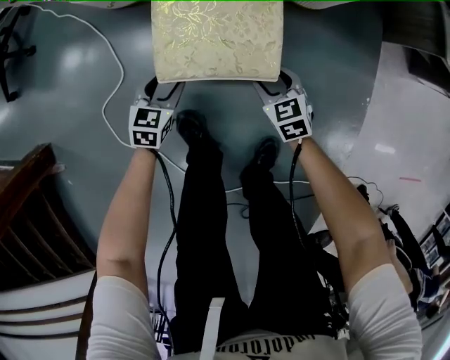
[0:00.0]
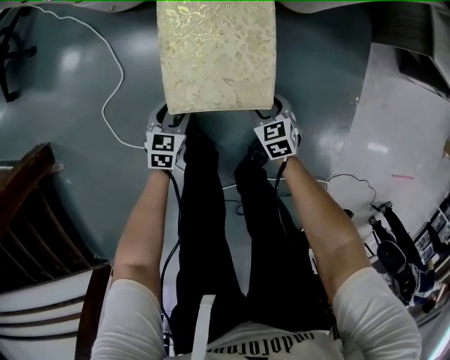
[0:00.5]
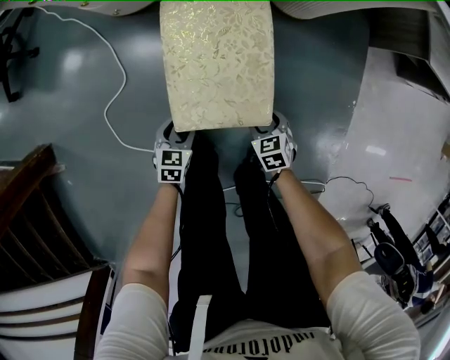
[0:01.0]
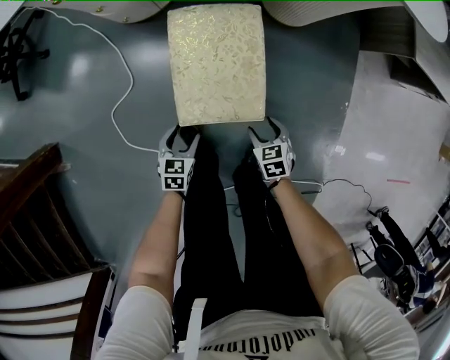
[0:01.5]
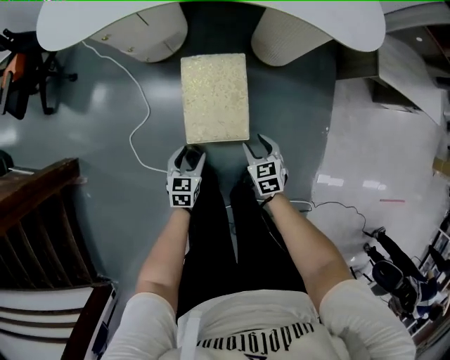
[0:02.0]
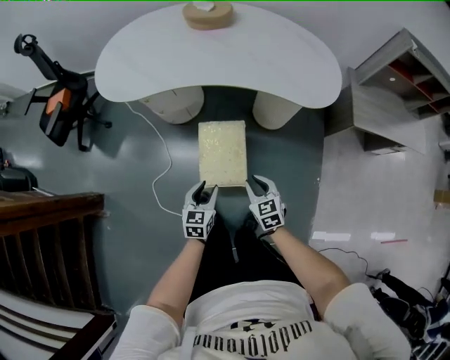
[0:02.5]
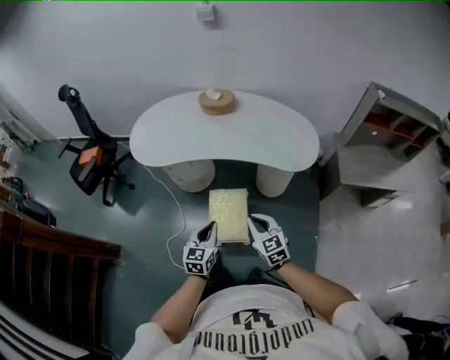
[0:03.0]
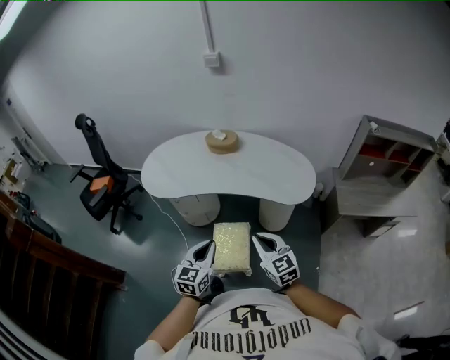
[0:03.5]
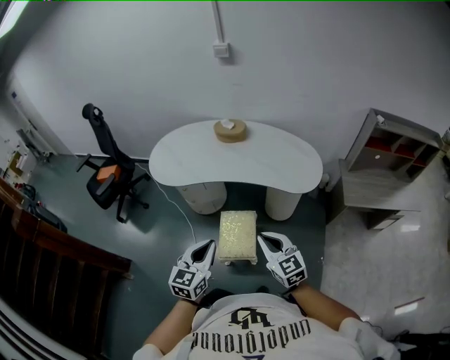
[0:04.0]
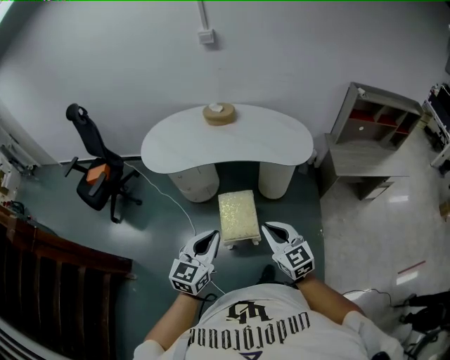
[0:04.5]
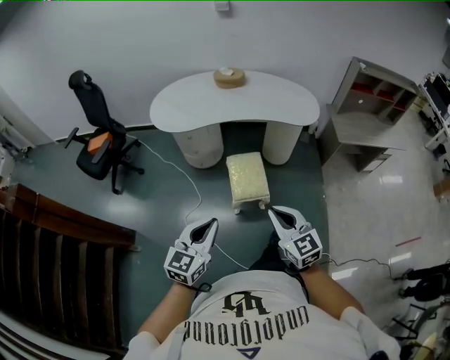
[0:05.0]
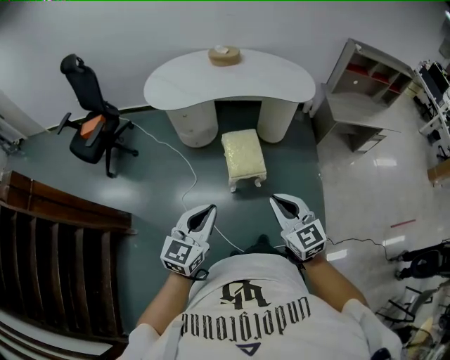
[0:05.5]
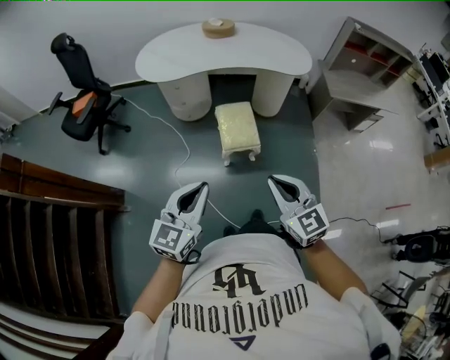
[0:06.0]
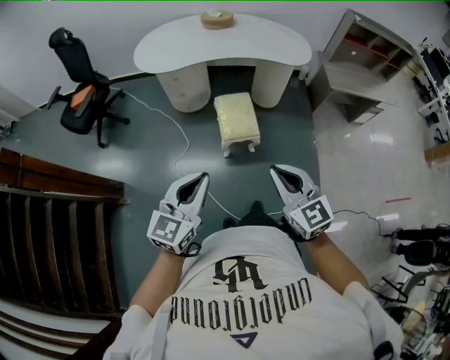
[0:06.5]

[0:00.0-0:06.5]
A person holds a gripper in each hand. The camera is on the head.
0:00.0 to 0:02.0: The left gripper travels upward and backward by some 30 cm. The right gripper is displaced upward by approximately 25 cm.
0:02.0 to 0:04.5: Both grippers move upward, some 60 cm. The right gripper angles its fingers upward, by roughly 40 degrees, and closes. The left gripper tilts its fingers about 30 degrees upward, and closes its fingers.
0:04.5 to 0:06.5: The right gripper shifts approximately 25 cm backward; the left gripper heads backward and to the left, covering roughly 30 cm.

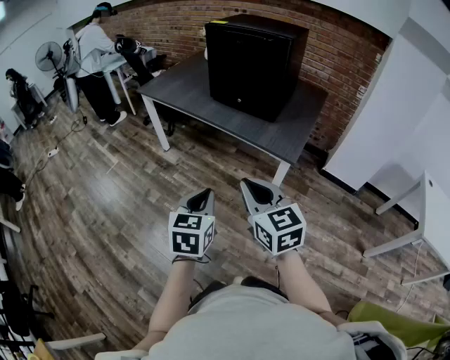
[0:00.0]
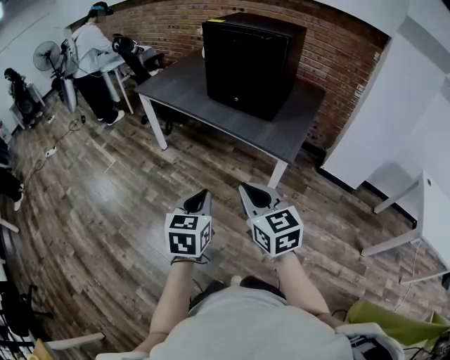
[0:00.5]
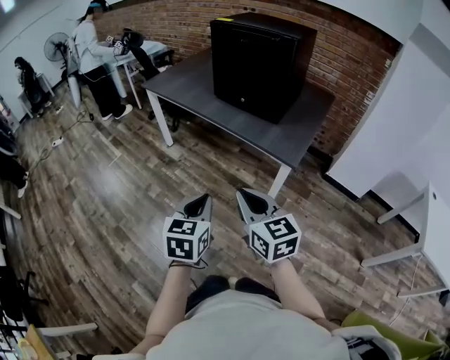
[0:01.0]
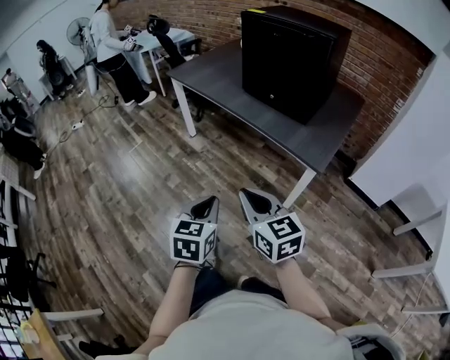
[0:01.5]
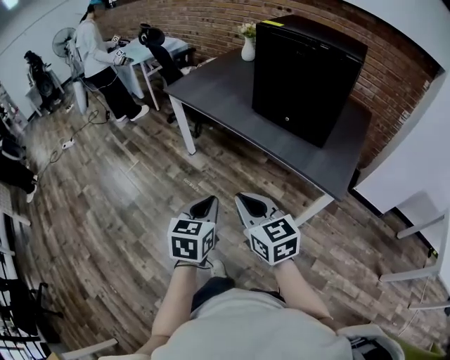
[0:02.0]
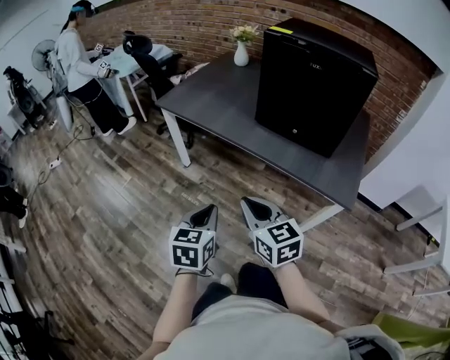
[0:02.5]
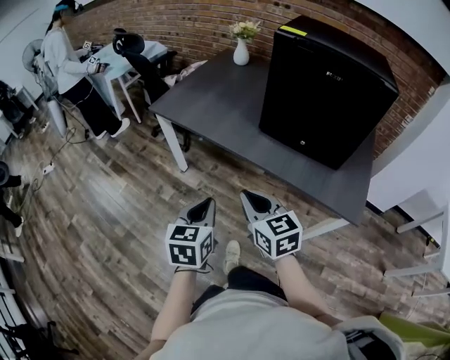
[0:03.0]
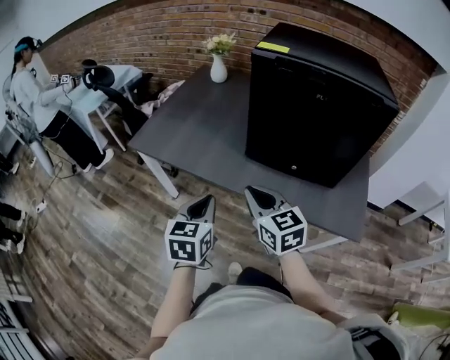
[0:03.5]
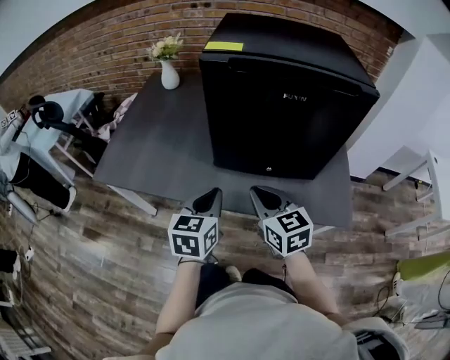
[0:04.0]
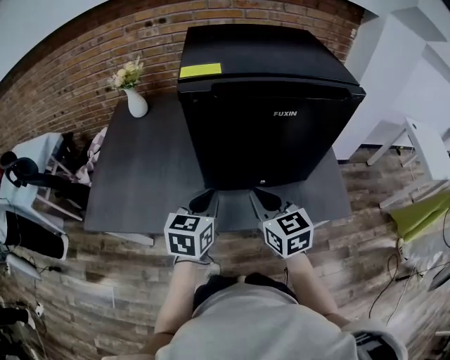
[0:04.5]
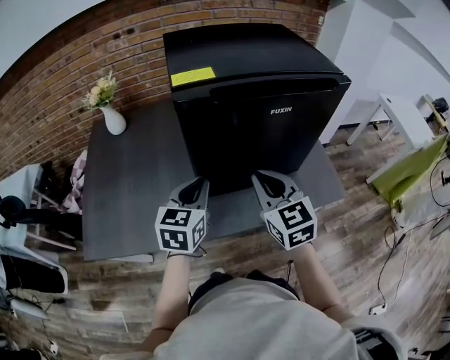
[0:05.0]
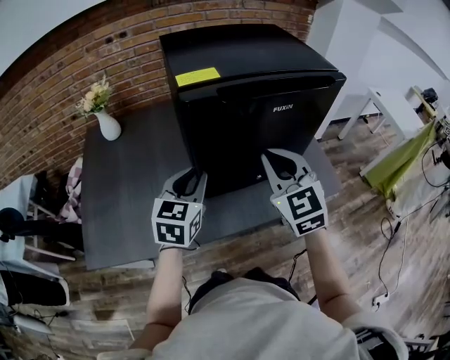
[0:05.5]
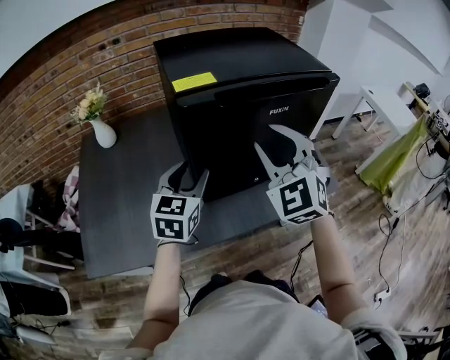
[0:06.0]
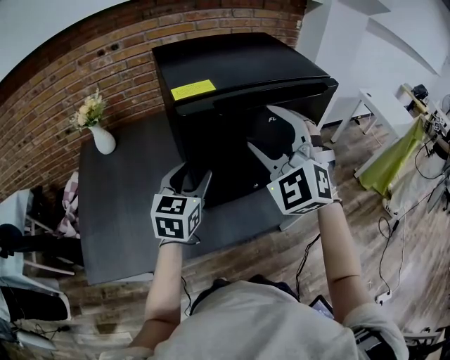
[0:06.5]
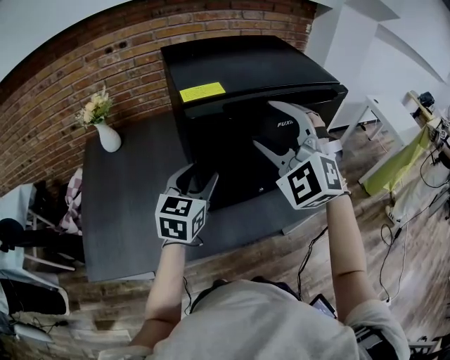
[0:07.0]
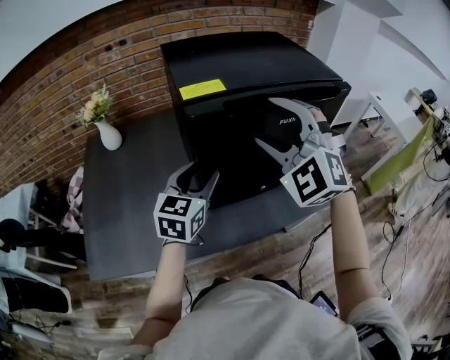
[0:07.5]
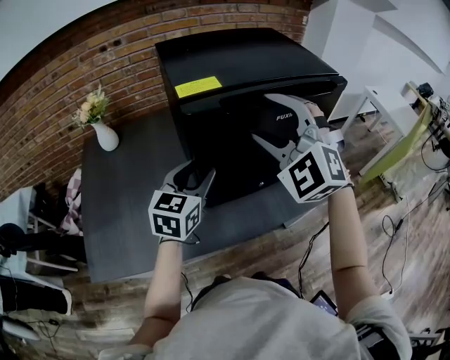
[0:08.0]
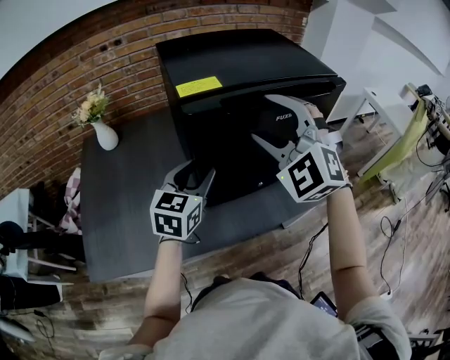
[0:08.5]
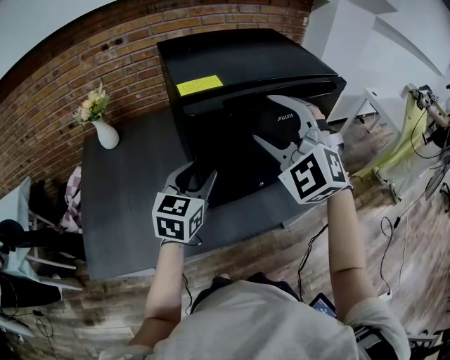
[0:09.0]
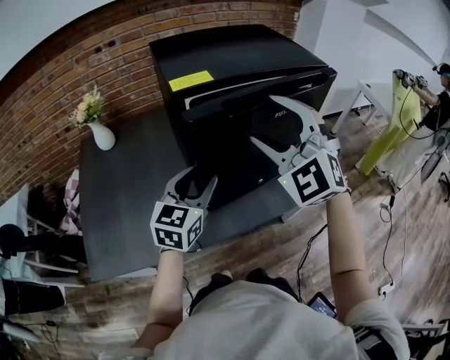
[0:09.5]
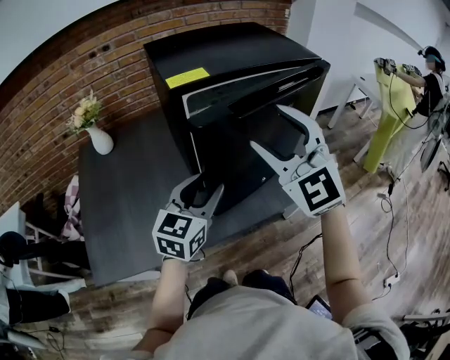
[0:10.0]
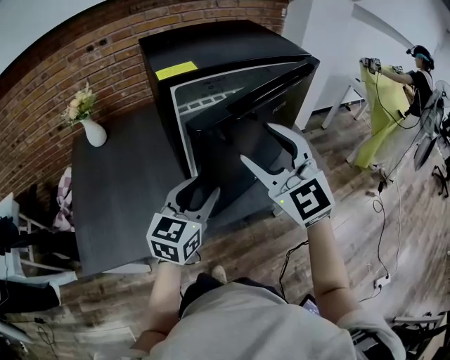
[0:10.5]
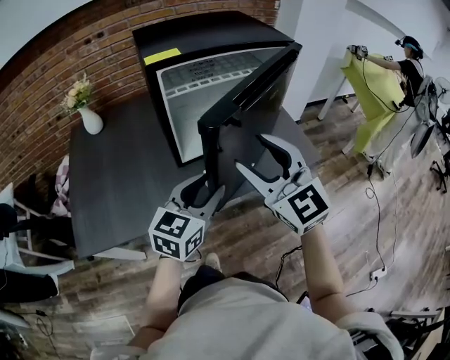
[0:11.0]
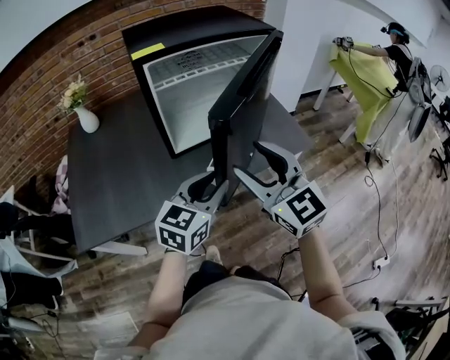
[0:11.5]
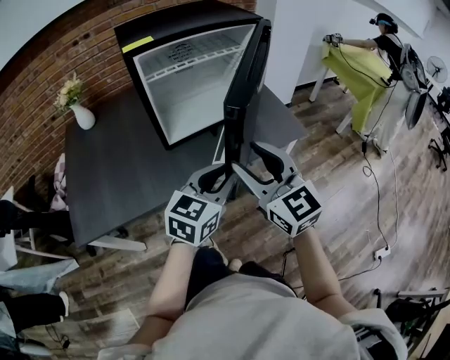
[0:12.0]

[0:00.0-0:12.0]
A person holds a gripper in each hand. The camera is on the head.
0:00.0 to 0:02.0: Both grippers travel together forward and to the left, roughly 25 cm.
0:02.0 to 0:04.0: The two grippers travel together, approximately 40 cm. The left gripper turns by approximately 30 degrees. The right gripper rotates approximately 30 degrees.
0:04.0 to 0:06.0: The left gripper ends up roughly 20 cm from where it was, changes its angle by approximately 30 degrees, and opens up. The right gripper is displaced upward by some 20 cm, swivels roughly 60 degrees, and opens.
0:06.0 to 0:08.0: The right gripper changes place by approximately 5 cm, rotates approximately 20 degrees, and opens up.
0:08.0 to 0:10.0: The two grippers go about 5 cm backward. The right gripper rotates roughly 30 degrees.
0:10.0 to 0:12.0: The left gripper moves to the right and backward, approximately 25 cm, and closes up. Meanwhile the right gripper goes some 25 cm backward, downward and to the right, and rotates approximately 30 degrees.

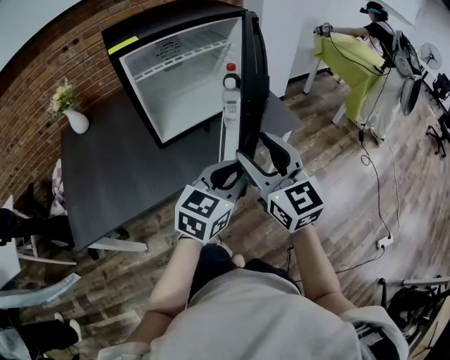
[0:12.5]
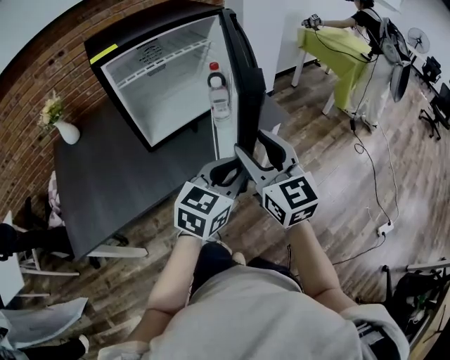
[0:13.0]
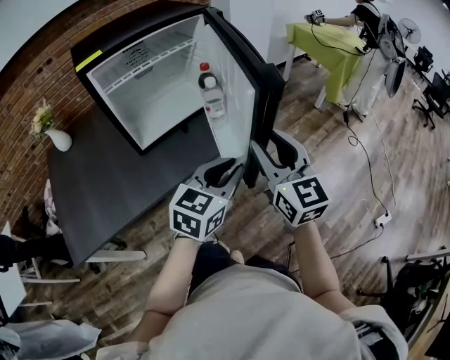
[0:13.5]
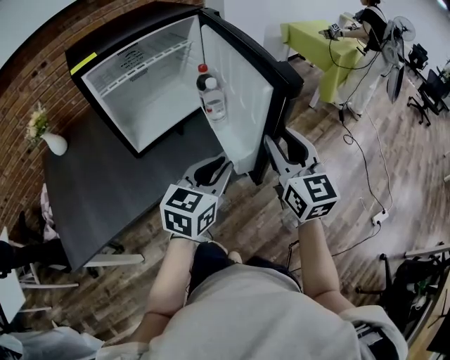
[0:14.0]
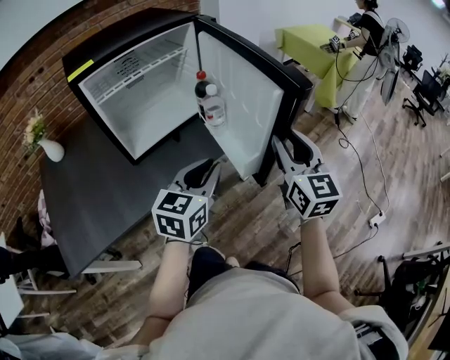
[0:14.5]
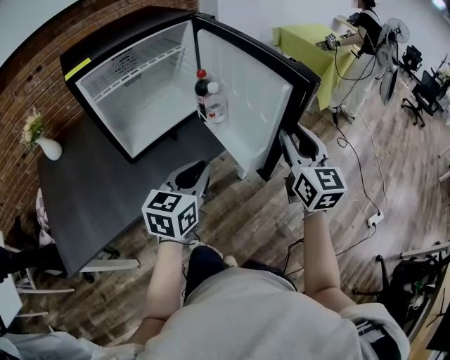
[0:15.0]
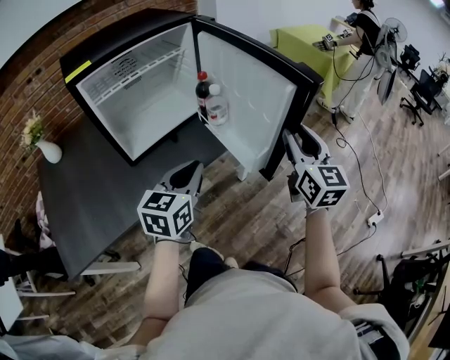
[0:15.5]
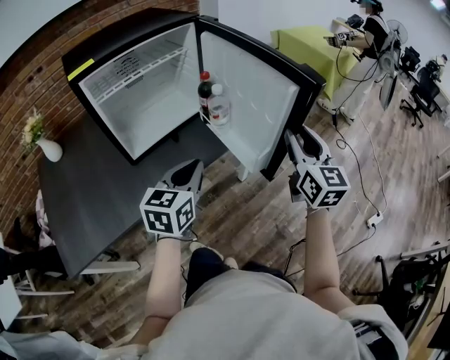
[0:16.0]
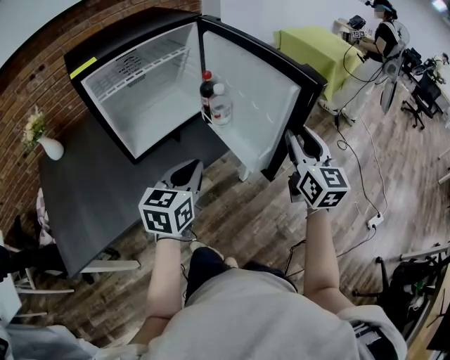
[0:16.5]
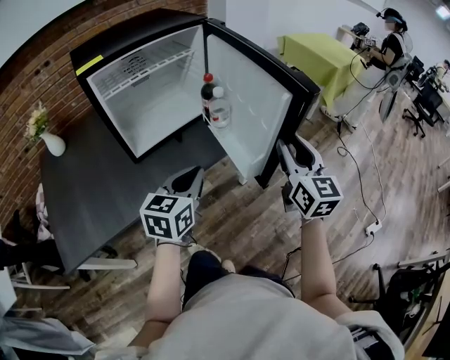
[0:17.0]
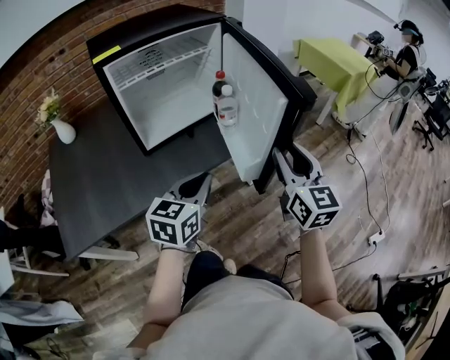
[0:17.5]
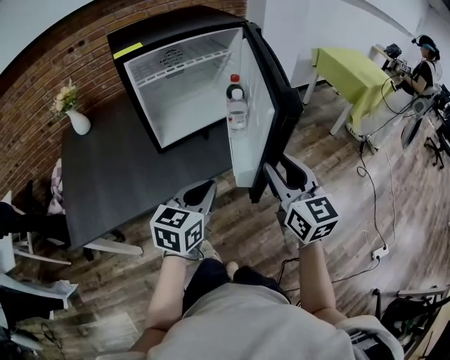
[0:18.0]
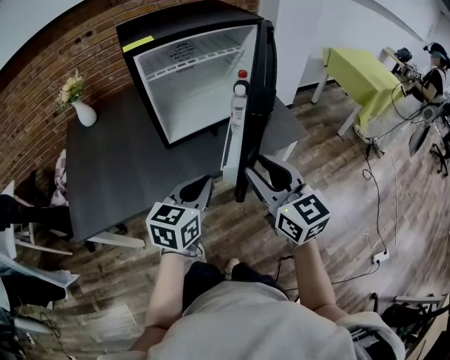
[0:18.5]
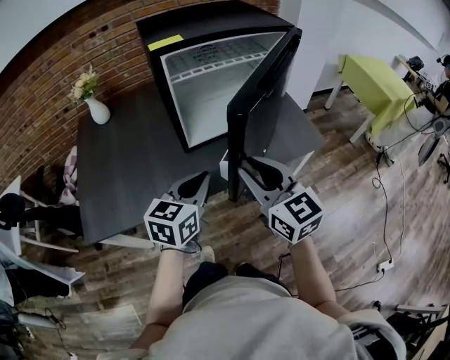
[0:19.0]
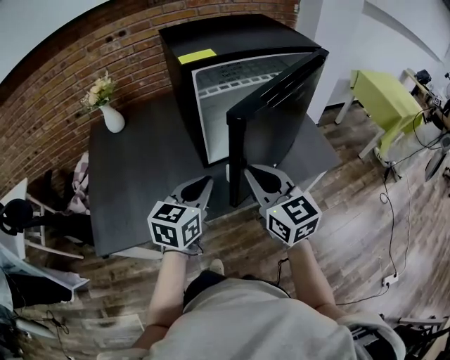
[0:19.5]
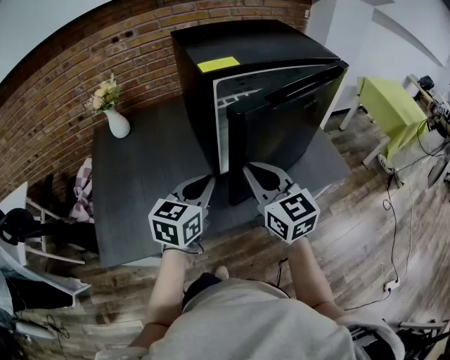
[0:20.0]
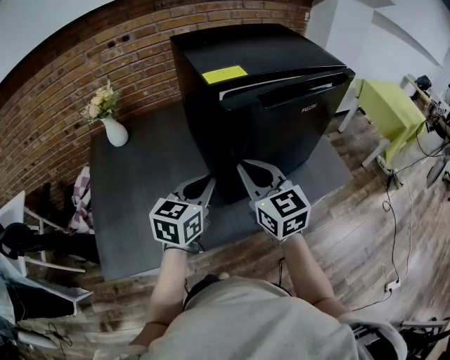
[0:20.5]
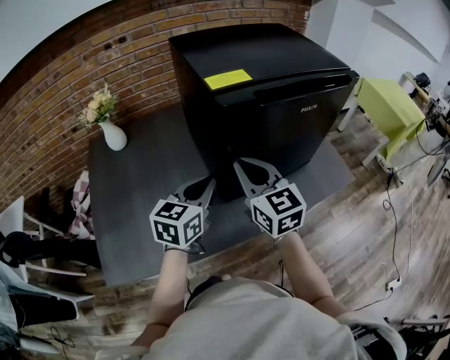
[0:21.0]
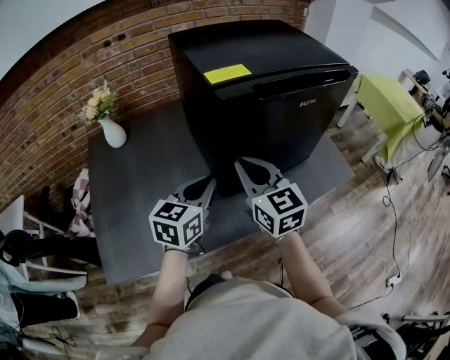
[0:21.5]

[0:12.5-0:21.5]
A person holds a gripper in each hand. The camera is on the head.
0:12.5 to 0:14.5: The right gripper heads to the right, covering approximately 15 cm, and changes its angle by about 20 degrees.
0:14.5 to 0:17.0: There are only small adjustments of the grippers.
0:17.0 to 0:19.5: The left gripper is displaced to the left by some 20 cm; the right gripper travels to the left by roughly 35 cm, swivels some 40 degrees, and closes.
0:19.5 to 0:21.5: The two grippers go about 15 cm forward and to the left.
